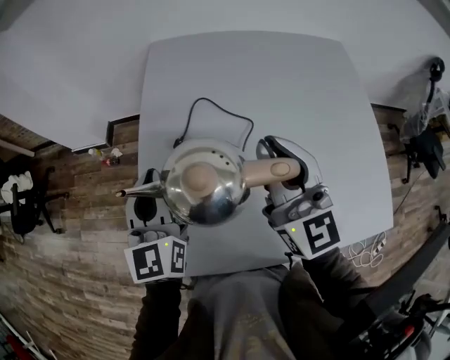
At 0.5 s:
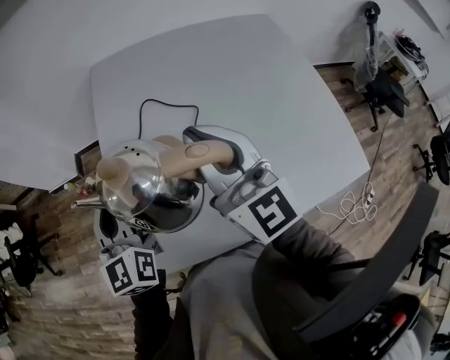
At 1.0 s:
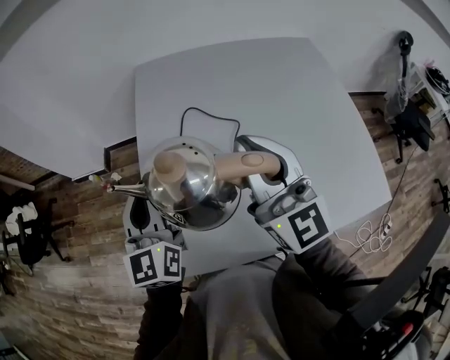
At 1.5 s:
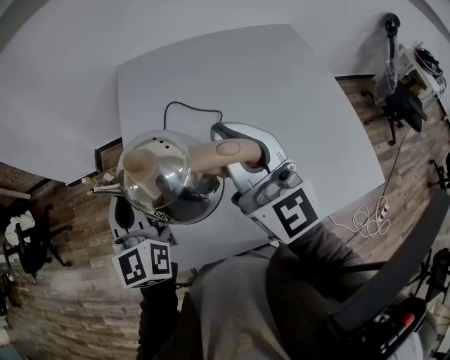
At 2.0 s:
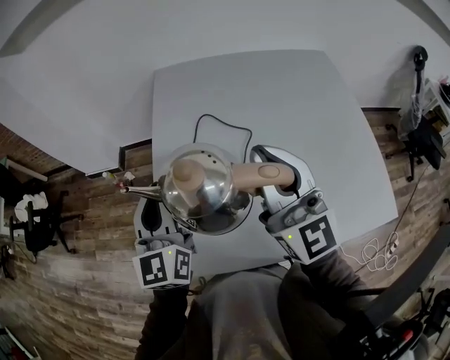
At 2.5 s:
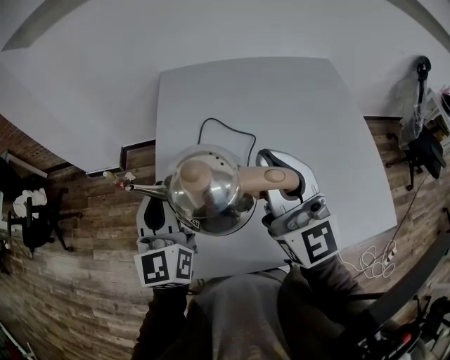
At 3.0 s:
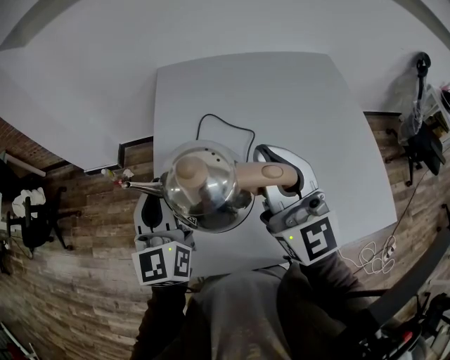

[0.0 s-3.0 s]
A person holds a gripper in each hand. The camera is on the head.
0.0 to 1.5 s: The grippers both shift backward and upward by approximately 10 cm.
1.5 to 3.0 s: Both grippers stay put.

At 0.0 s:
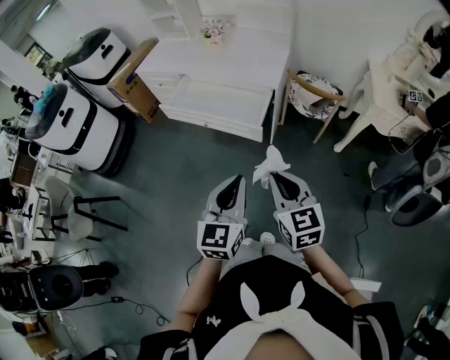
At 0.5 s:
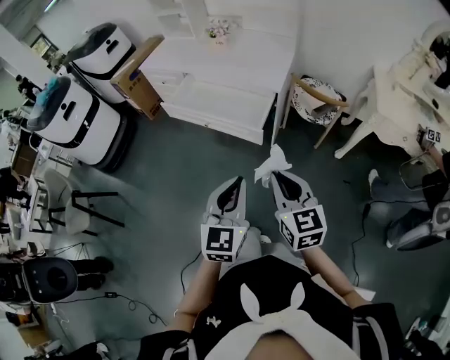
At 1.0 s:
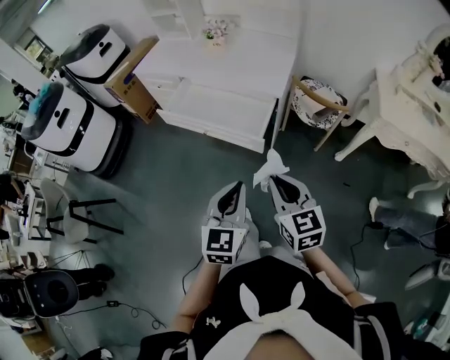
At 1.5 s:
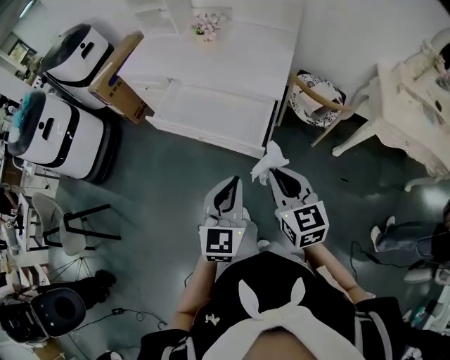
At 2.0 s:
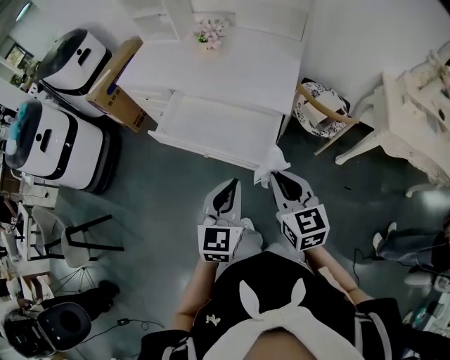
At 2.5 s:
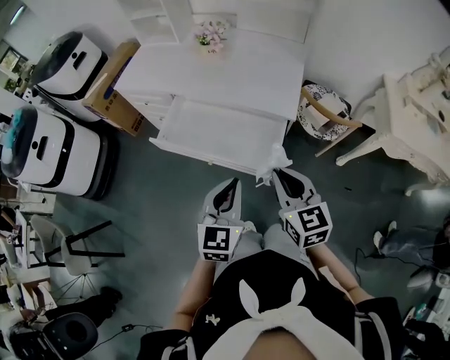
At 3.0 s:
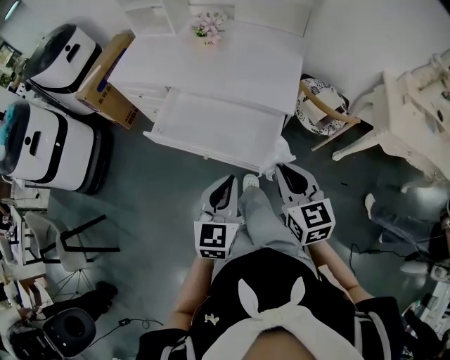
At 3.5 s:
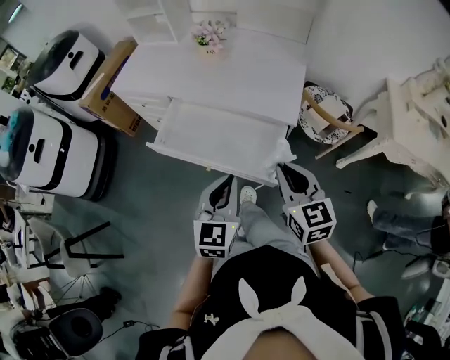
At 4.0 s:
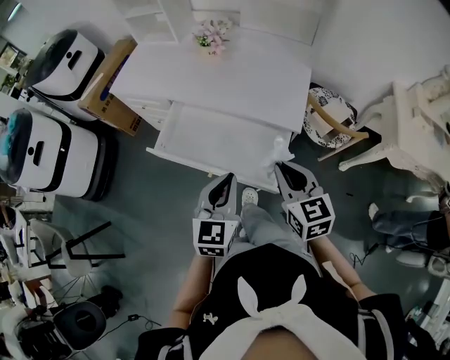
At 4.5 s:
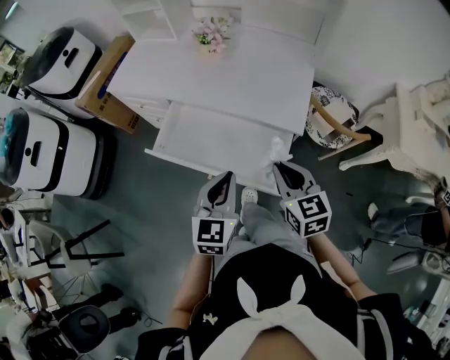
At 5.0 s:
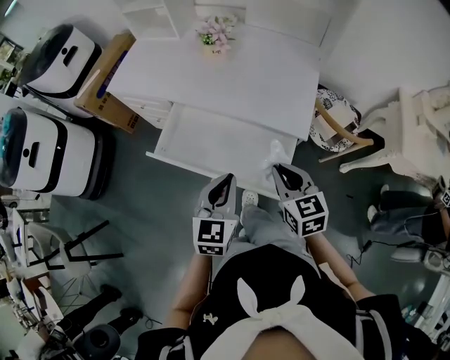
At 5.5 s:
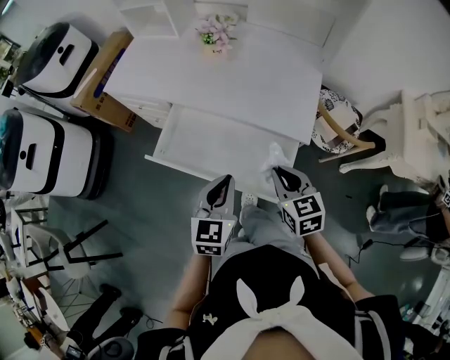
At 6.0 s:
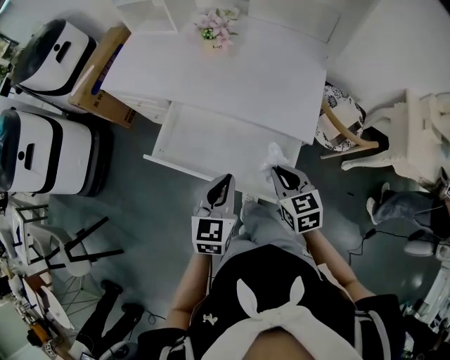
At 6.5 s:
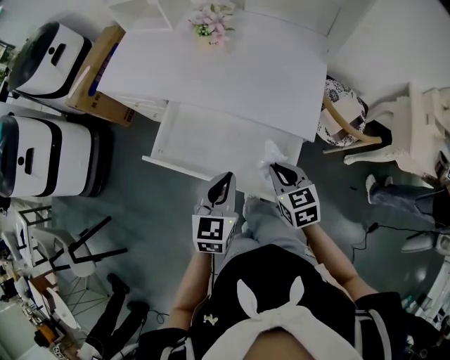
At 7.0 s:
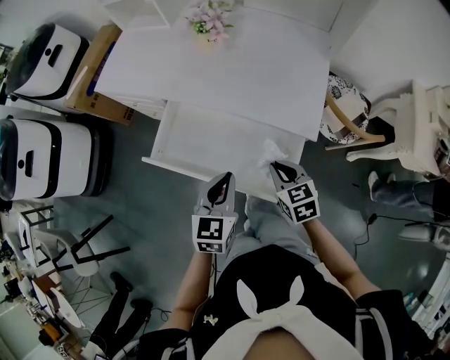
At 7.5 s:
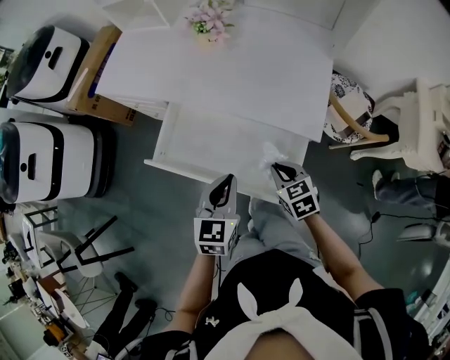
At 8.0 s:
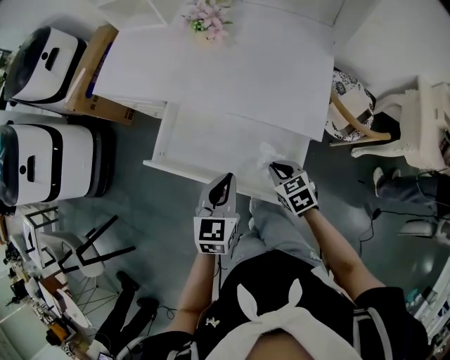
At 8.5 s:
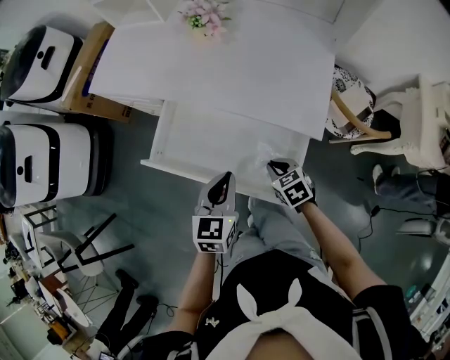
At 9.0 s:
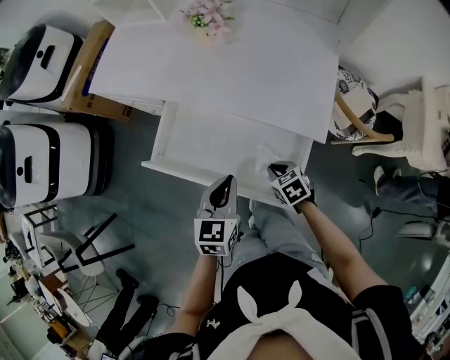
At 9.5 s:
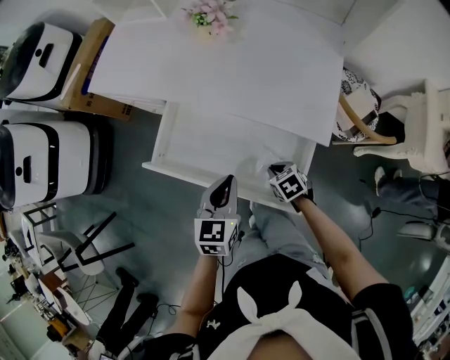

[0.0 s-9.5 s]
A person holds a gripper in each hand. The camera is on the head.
0.0 to 2.0 s: Both grippers travel together forward, about 20 cm.
2.0 to 4.0 s: Both grippers move forward, roughly 15 cm.
4.0 to 5.5 s: The left gripper is displaced forward by approximately 5 cm. Meanwhile the right gripper travels downward and forward by approximately 10 cm.
5.5 to 7.5 s: The right gripper travels downward by approximately 10 cm. The left gripper shifts by about 5 cm.
7.5 to 9.5 s: The right gripper goes some 15 cm downward, and swivels about 20 degrees.

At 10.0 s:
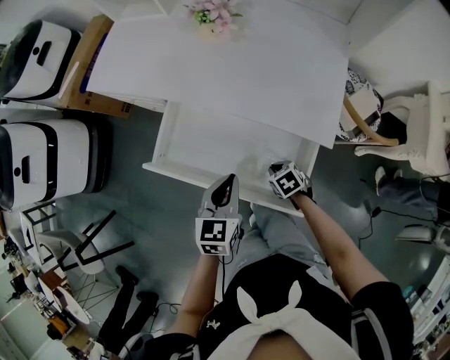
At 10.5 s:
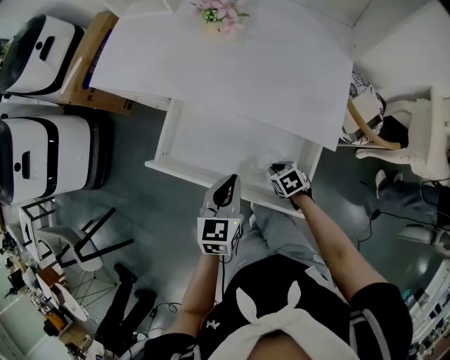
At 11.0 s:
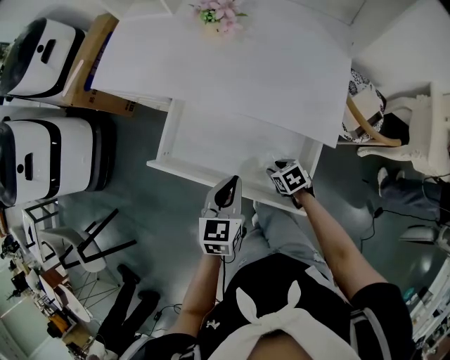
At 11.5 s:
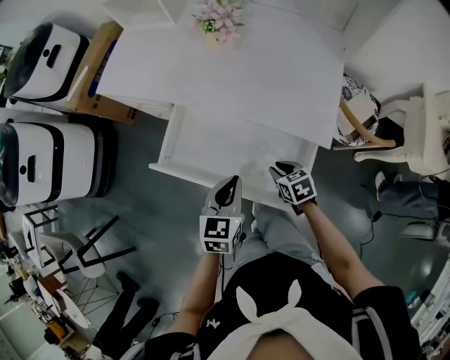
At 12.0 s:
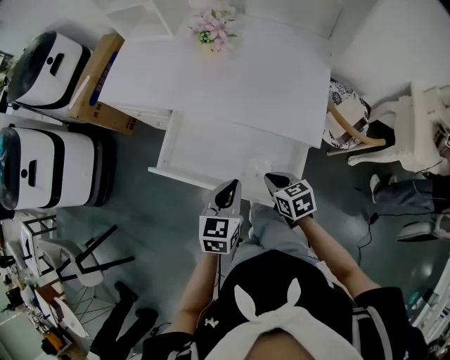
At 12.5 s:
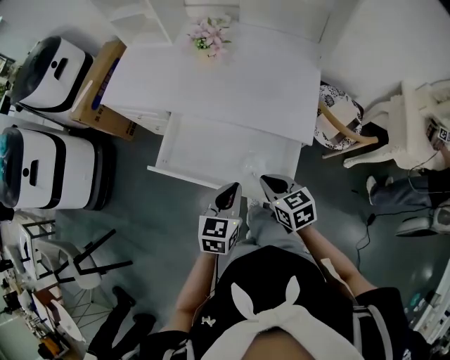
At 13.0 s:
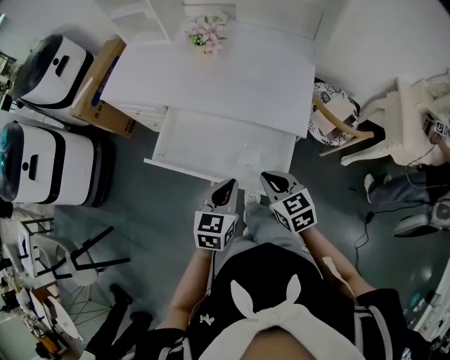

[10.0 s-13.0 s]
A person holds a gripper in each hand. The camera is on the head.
10.0 to 11.5 s: The right gripper heads upward, covering some 5 cm.
11.5 to 13.0 s: The right gripper is displaced upward and backward by roughly 20 cm, and swivels about 20 degrees, while the left gripper shifts approximately 10 cm backward.

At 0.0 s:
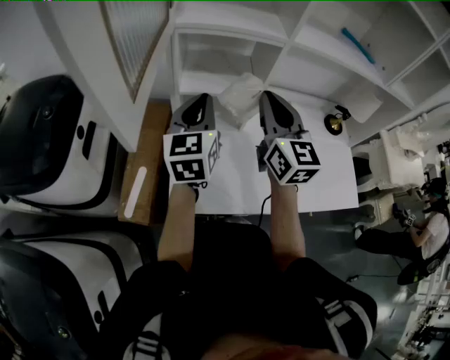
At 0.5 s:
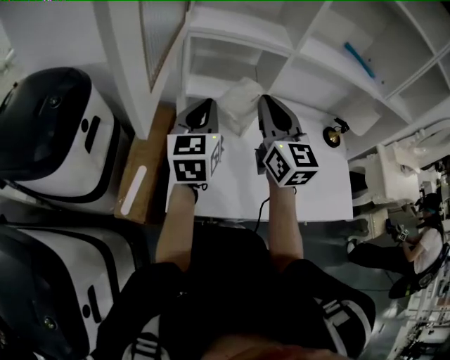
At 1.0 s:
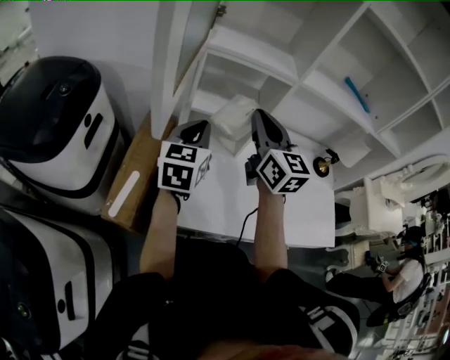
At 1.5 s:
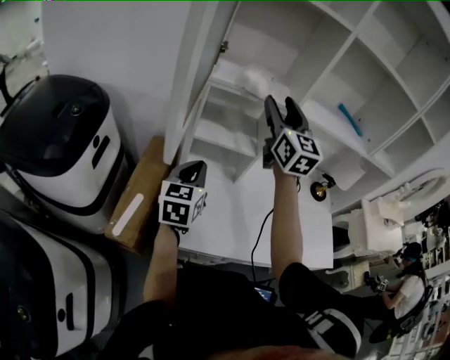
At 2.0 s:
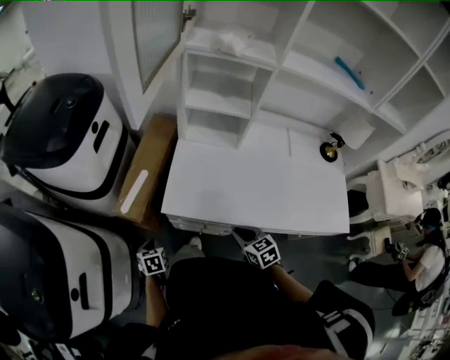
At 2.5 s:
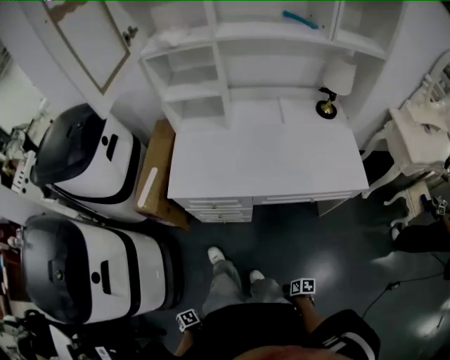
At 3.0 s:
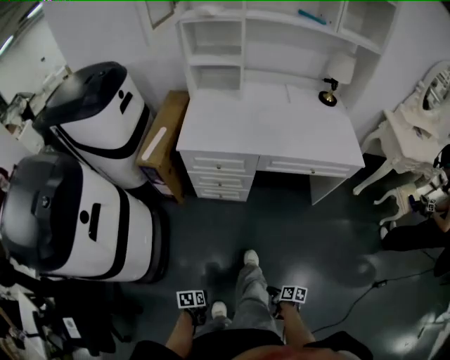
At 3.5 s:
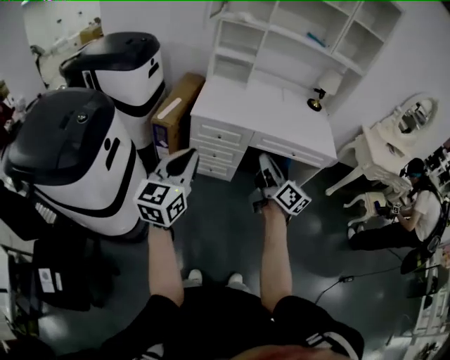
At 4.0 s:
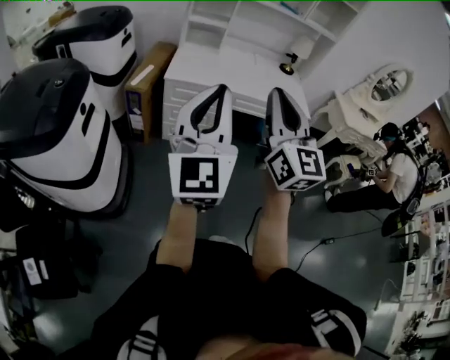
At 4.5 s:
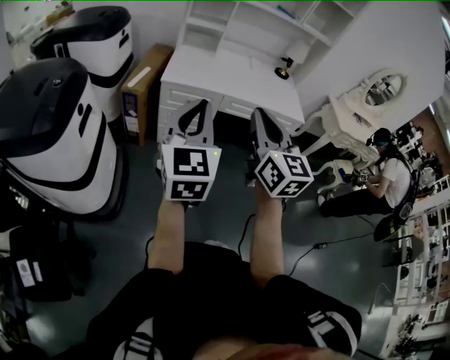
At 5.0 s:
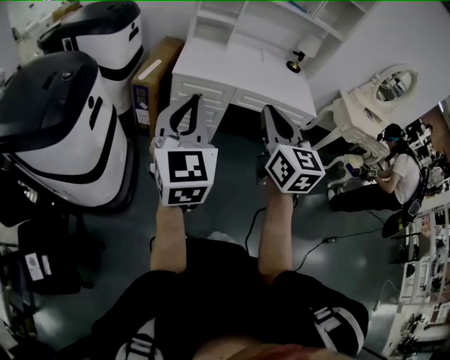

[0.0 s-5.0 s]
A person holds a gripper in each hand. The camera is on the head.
0.0 to 2.5 s: The two grippers travel together, approximately 80 cm. The left gripper tilts its fingers roughly 90 degrees downward; the right gripper points its fingers roughly 60 degrees further downward, and opens, then closes again.
2.5 to 5.0 s: The right gripper moves upward, roughly 60 cm, and points its fingers some 60 degrees further upward. The left gripper moves up and down over some 70 cm, changing direction 2 times, and points its fingers some 90 degrees further upward.

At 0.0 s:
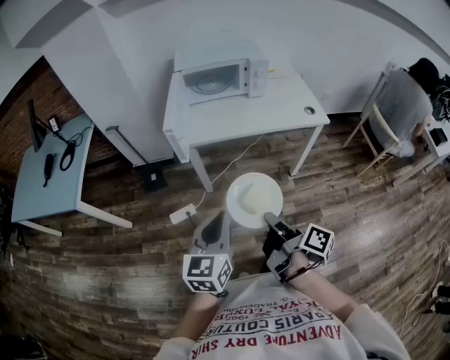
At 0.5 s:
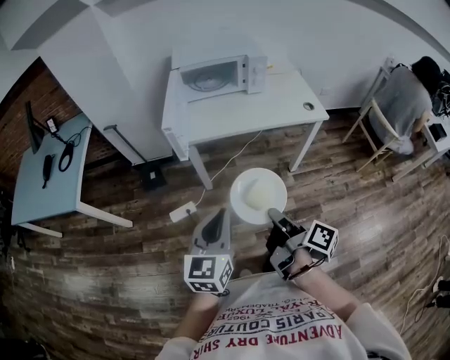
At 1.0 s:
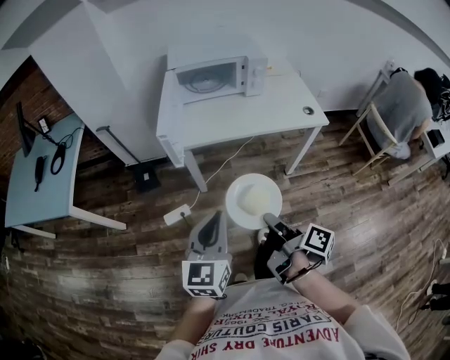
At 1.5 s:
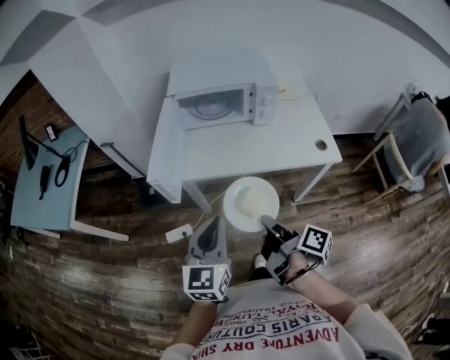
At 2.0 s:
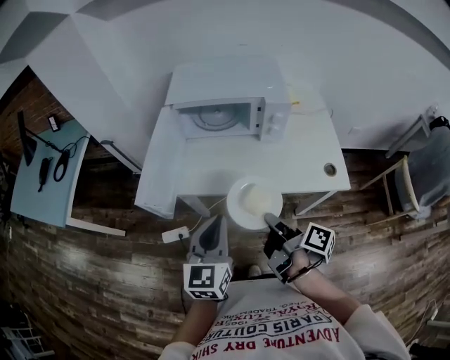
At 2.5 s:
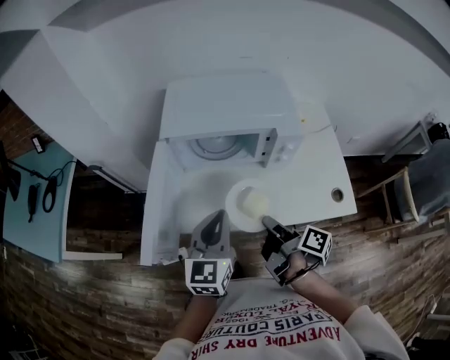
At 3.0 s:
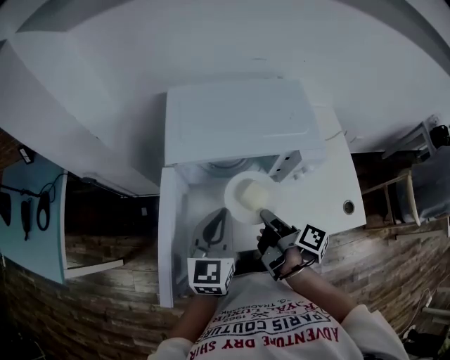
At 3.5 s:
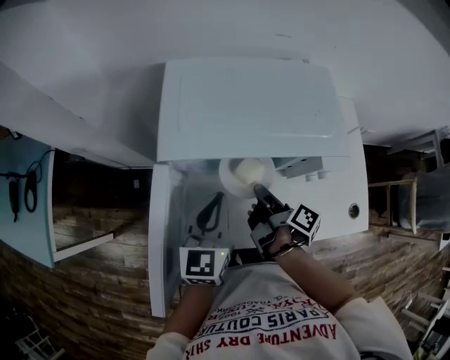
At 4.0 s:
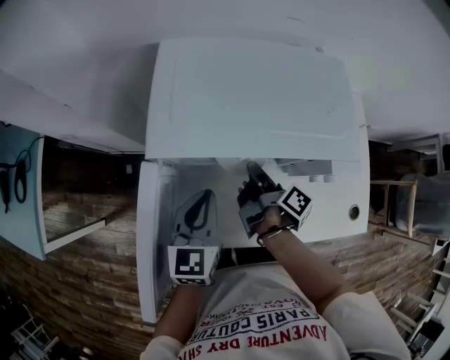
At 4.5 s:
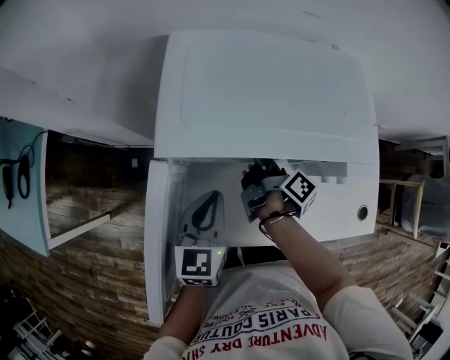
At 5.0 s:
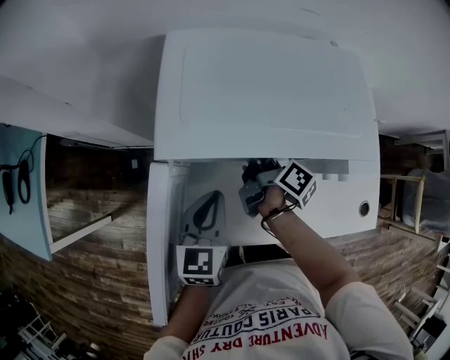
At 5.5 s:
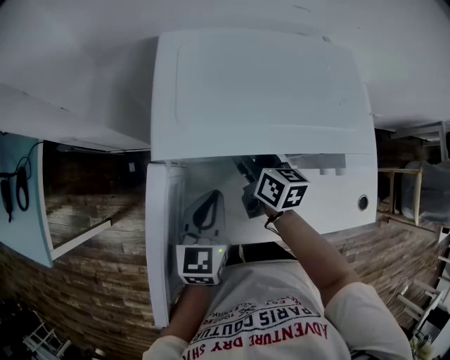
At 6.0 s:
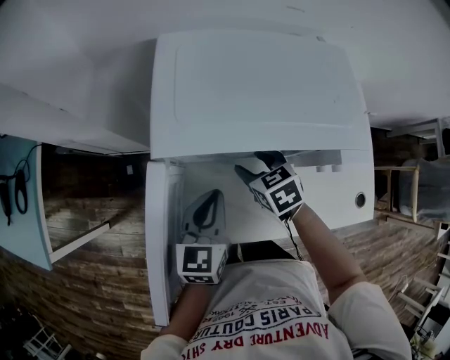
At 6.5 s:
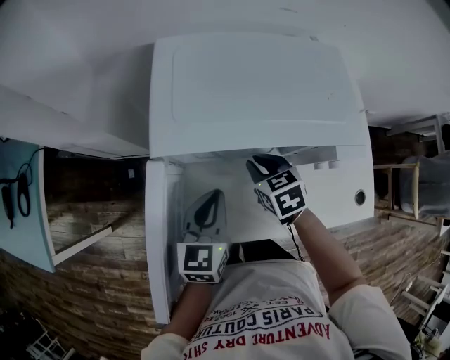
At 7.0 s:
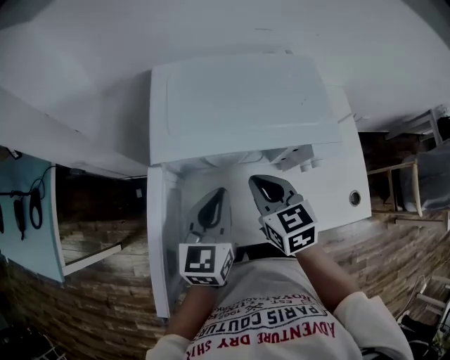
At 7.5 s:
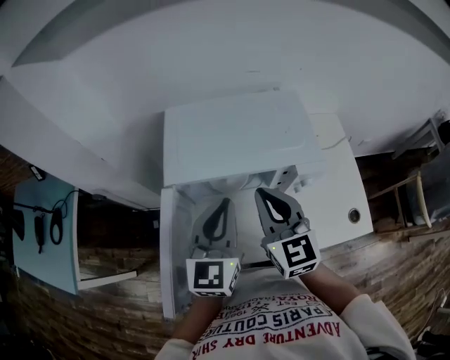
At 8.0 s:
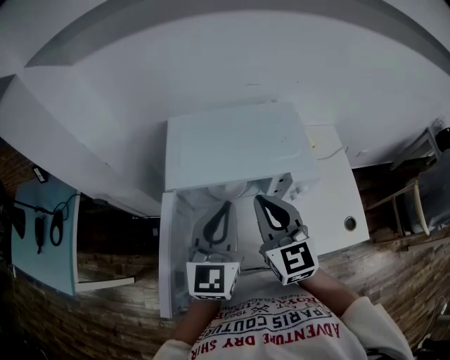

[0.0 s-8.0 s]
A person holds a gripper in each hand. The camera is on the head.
0.0 to 2.0 s: The grippers both shift forward by roughly 30 cm.
2.0 to 4.0 s: The grippers both shift forward by roughly 35 cm.
4.0 to 6.0 s: The right gripper rotates around the line of its fingers by some 90 degrees, counterclockwise from behind, and opens.
6.0 to 8.0 s: Both grippers travel together upward, about 25 cm. The right gripper tips its fingers upward by about 50 degrees, and closes, while the left gripper swivels some 30 degrees.
